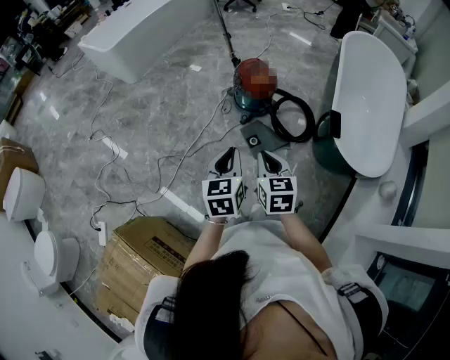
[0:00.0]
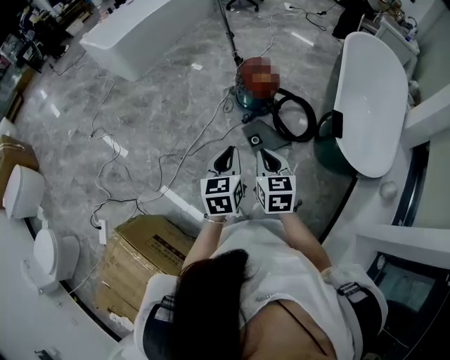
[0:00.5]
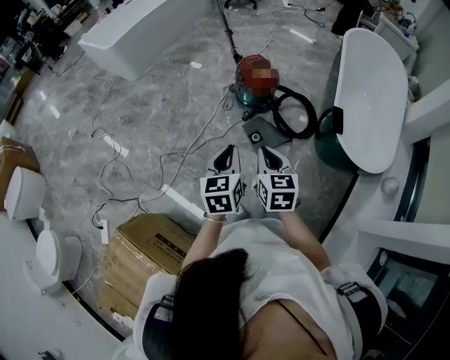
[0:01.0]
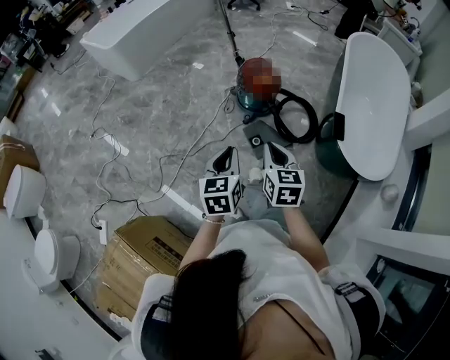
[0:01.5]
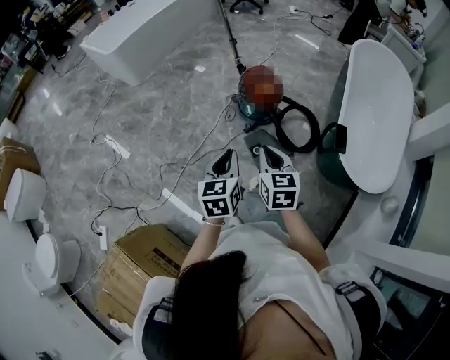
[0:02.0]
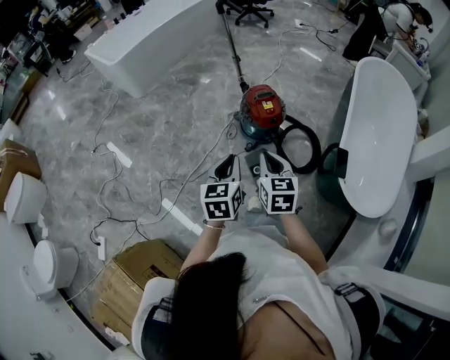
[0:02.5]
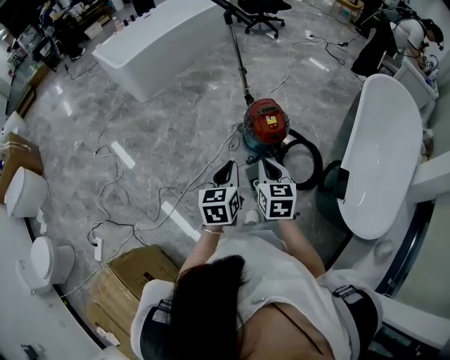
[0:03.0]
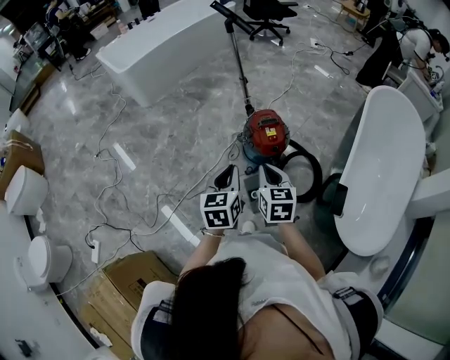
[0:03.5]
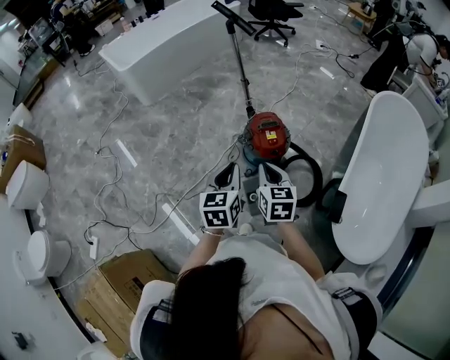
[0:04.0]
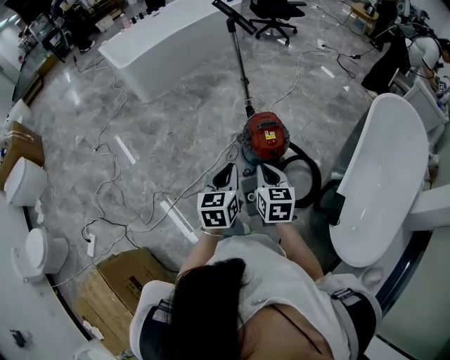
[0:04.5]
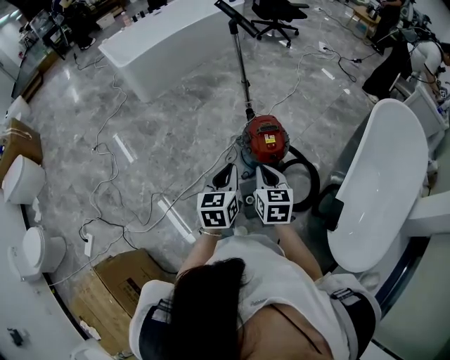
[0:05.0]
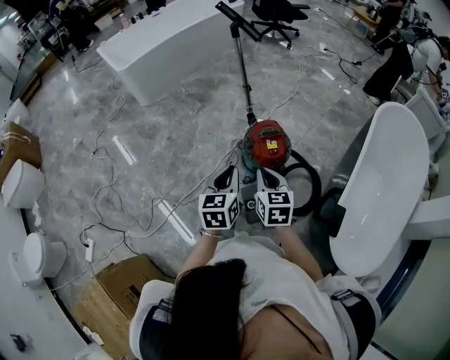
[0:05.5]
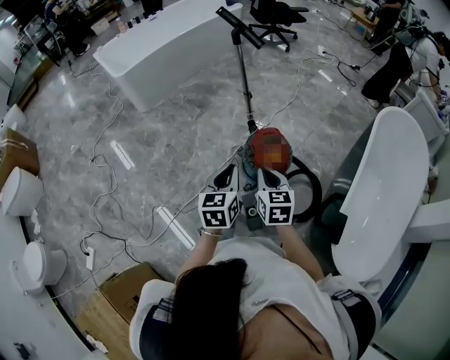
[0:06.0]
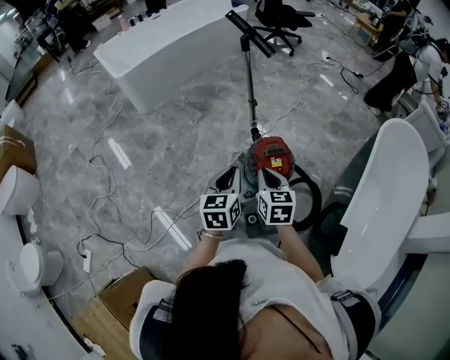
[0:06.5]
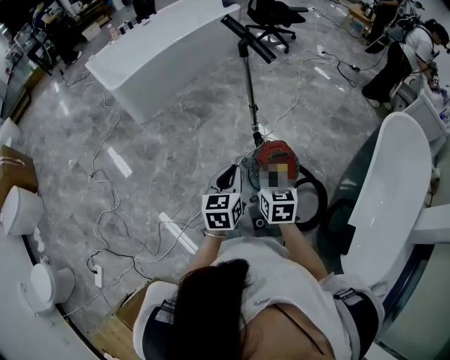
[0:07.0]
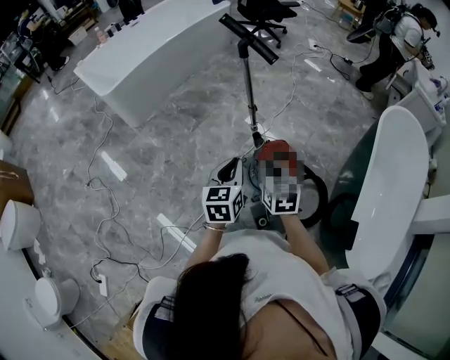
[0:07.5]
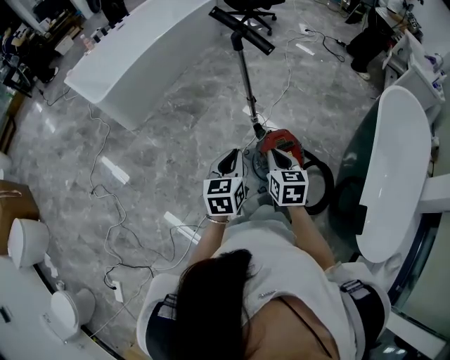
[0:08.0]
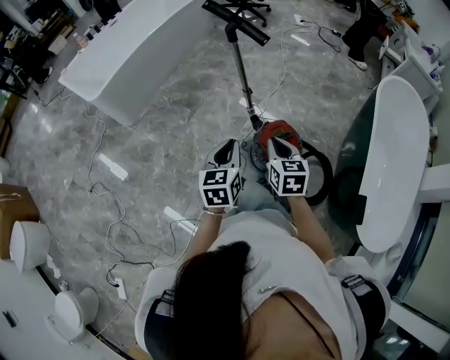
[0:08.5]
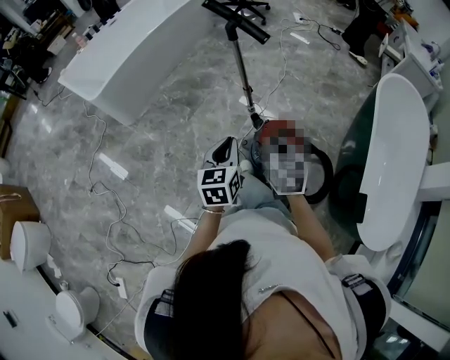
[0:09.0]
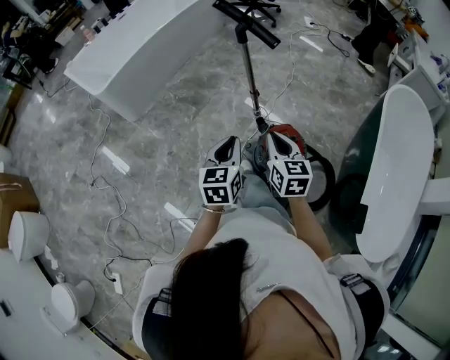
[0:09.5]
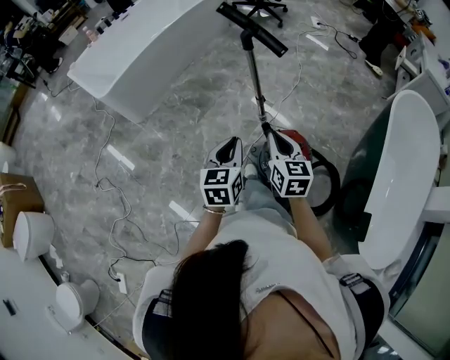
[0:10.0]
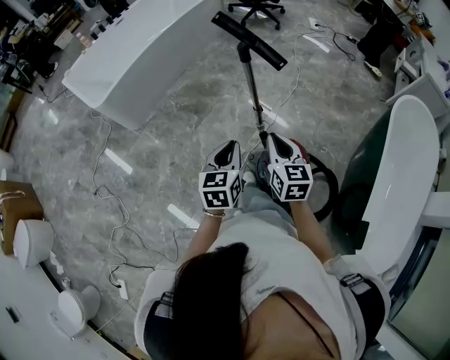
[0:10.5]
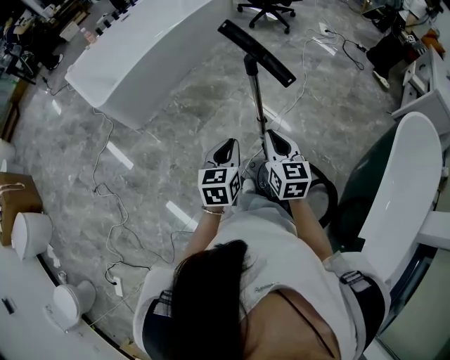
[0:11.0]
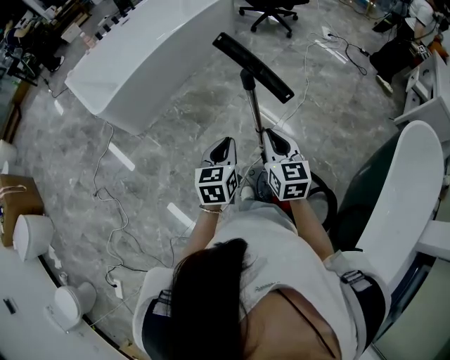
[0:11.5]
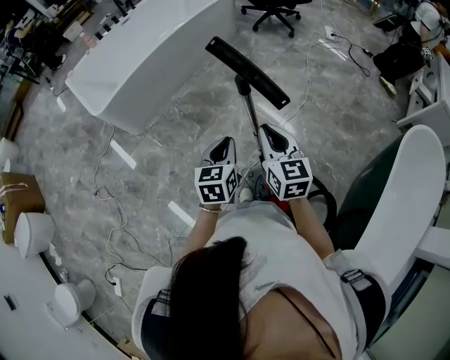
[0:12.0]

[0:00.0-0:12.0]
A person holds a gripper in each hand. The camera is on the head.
0:00.0 to 0:02.0: Both grippers move forward, about 10 cm.
0:02.0 to 0:04.0: The two grippers go roughly 20 cm forward.
0:04.0 to 0:06.0: Both grippers move forward, about 10 cm.
0:06.0 to 0:08.0: Both grippers move forward and to the left, approximately 20 cm.
0:08.0 to 0:10.0: Both grippers travel together forward, about 10 cm.
0:10.0 to 0:12.0: Both grippers move forward, roughly 20 cm.

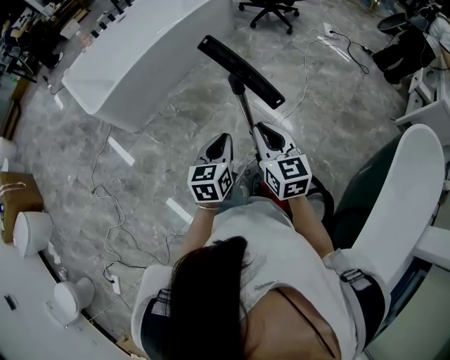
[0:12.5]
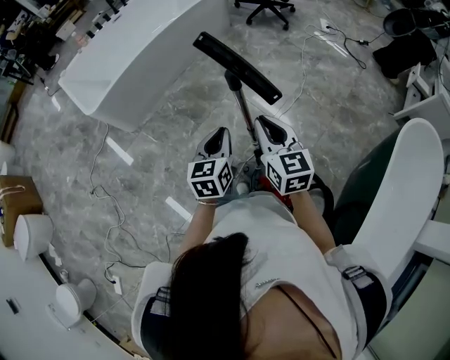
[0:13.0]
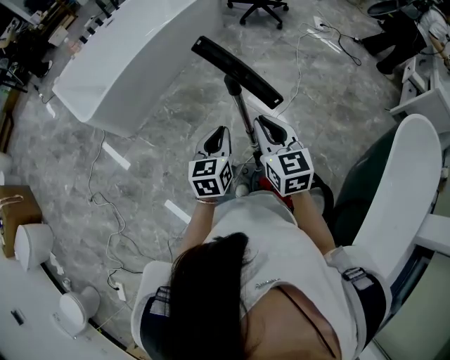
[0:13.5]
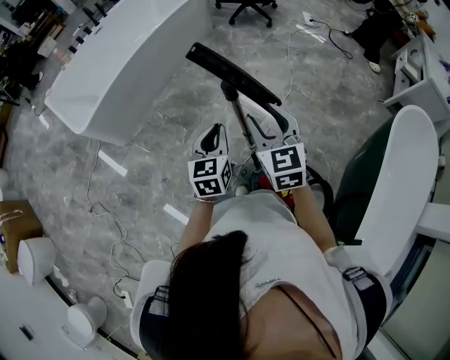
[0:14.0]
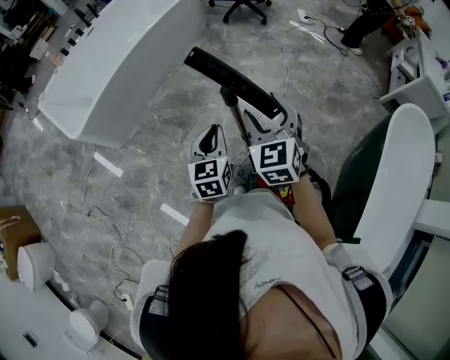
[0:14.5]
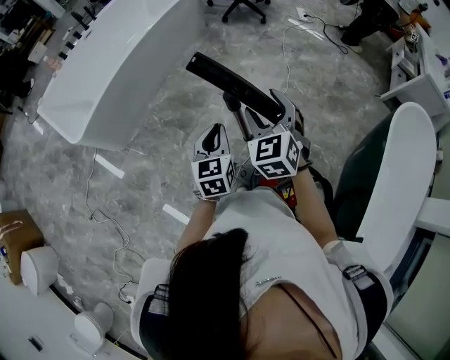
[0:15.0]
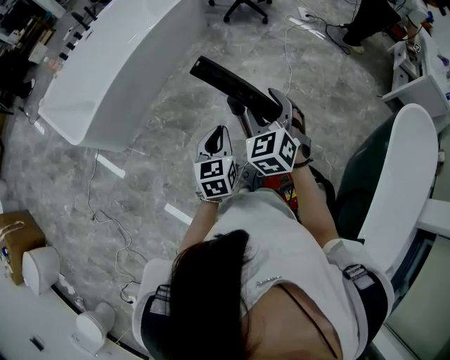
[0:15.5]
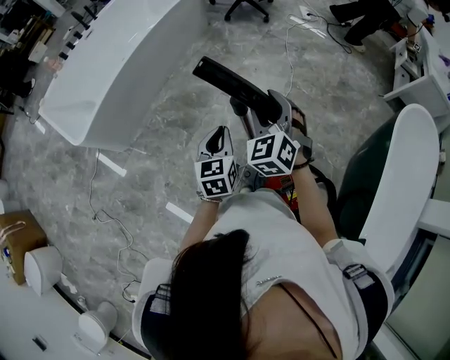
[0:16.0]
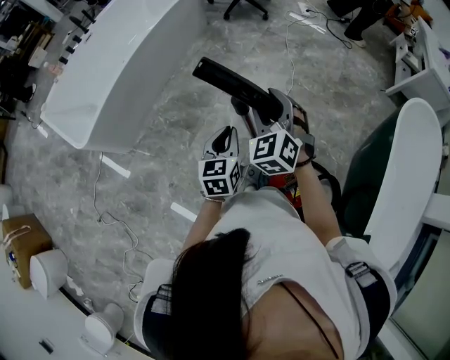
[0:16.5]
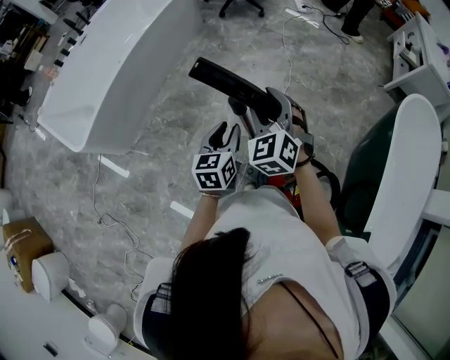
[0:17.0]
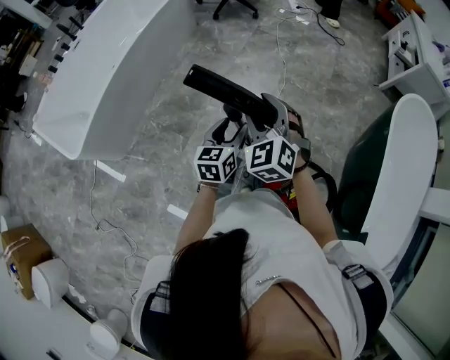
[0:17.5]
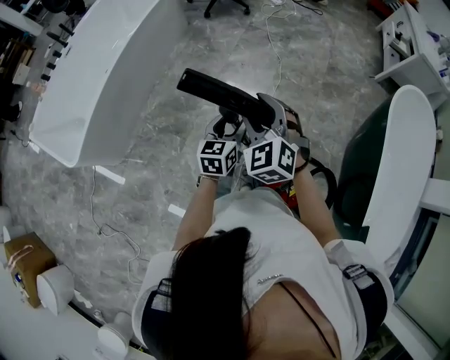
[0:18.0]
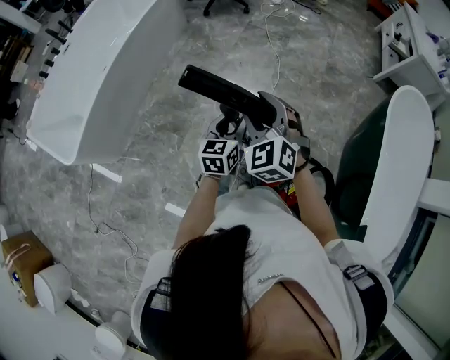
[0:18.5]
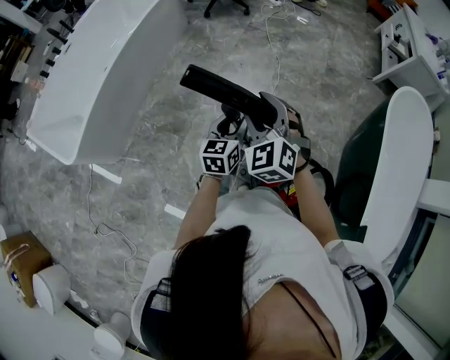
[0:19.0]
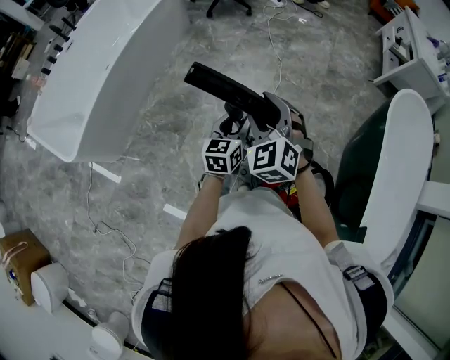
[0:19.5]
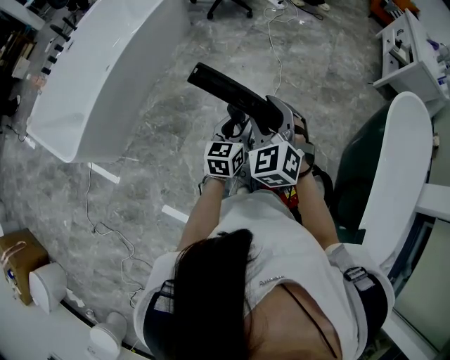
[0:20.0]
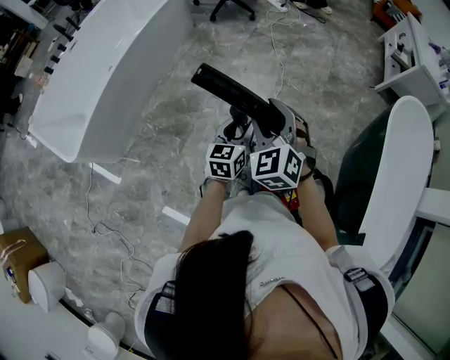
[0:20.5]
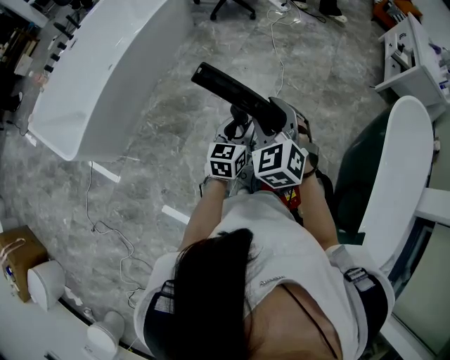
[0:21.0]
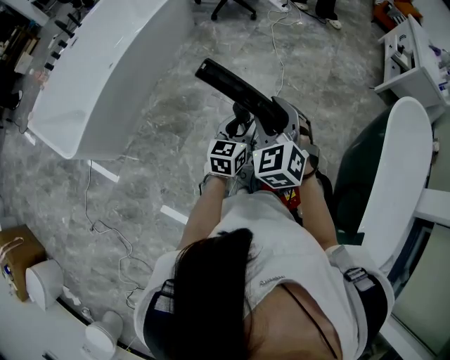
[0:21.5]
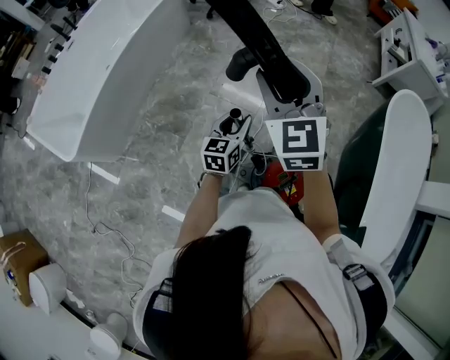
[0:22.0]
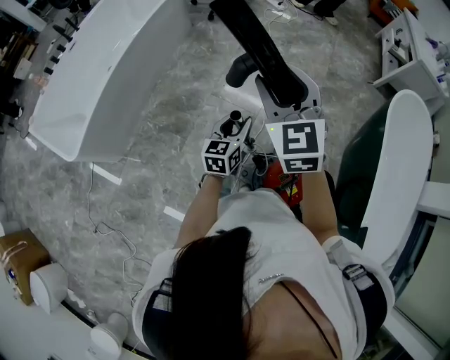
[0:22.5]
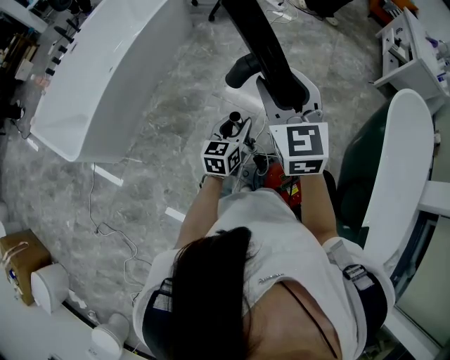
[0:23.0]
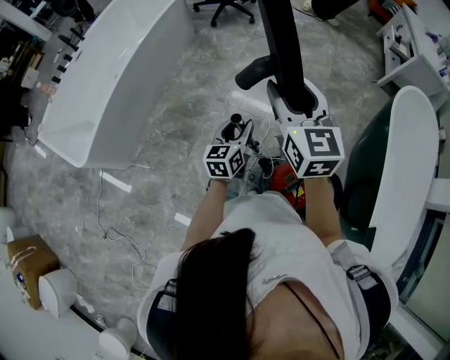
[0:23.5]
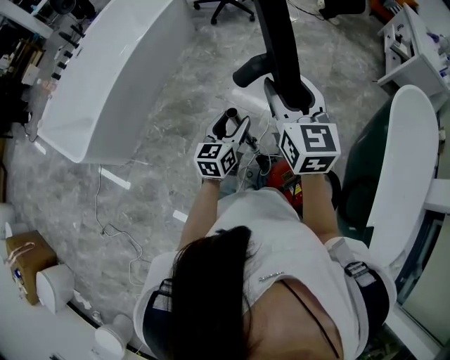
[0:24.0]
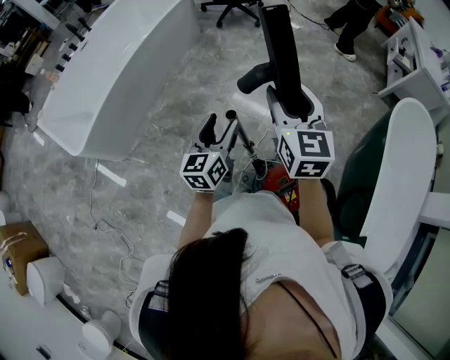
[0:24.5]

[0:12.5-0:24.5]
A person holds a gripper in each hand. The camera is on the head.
0:12.5 to 0:14.5: The two grippers go roughly 10 cm forward. The right gripper rotates some 30 degrees, and opens up.
0:14.5 to 0:16.5: The right gripper goes roughly 5 cm forward.
0:16.5 to 0:18.5: The left gripper is displaced forward and to the right by some 10 cm, and opens its fingers.
0:18.5 to 0:20.5: Neither gripper changes place.
0:20.5 to 0:22.5: The right gripper travels upward by roughly 10 cm, and swivels approximately 30 degrees.
0:22.5 to 0:24.5: The right gripper travels to the right by some 5 cm, while the left gripper heads upward, covering about 10 cm, and opens its fingers.

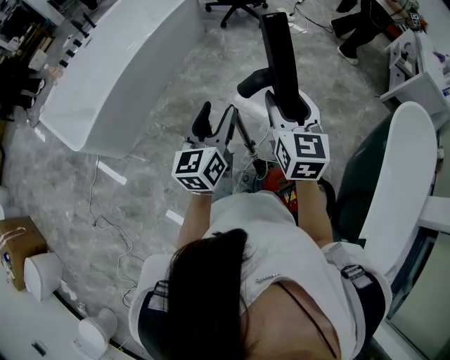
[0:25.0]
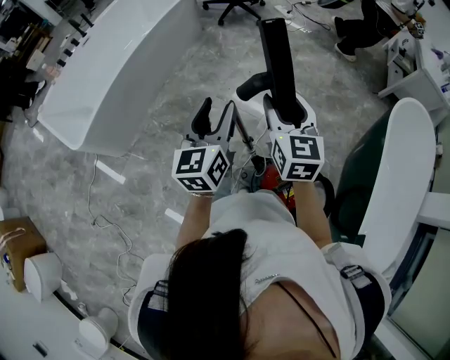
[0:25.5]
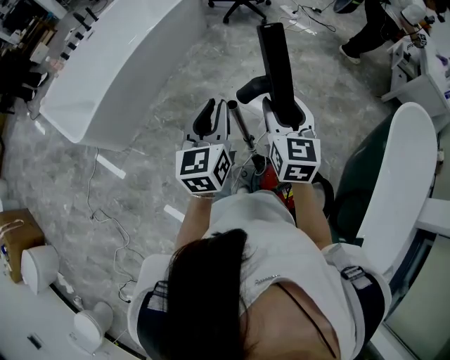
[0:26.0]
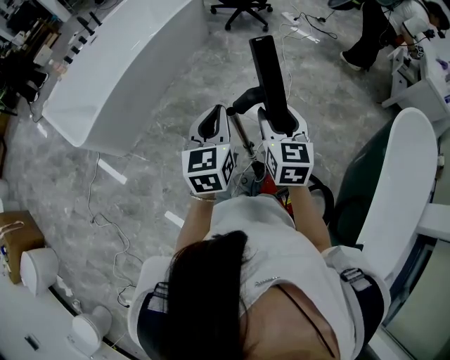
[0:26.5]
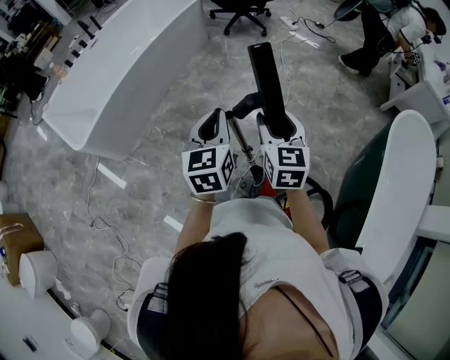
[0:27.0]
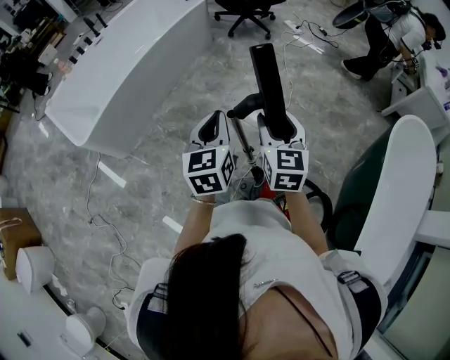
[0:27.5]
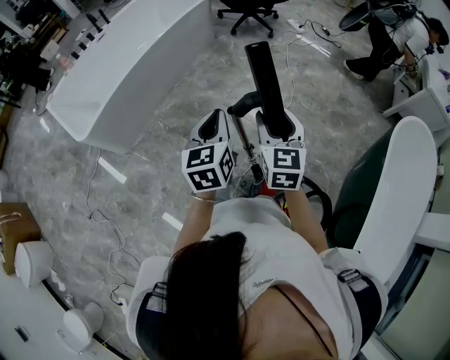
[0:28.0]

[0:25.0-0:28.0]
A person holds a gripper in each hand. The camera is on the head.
0:25.0 to 0:26.5: The right gripper travels downward by some 5 cm. Meanwhile the left gripper closes its fingers.
0:26.5 to 0:28.0: The grippers make only small movements.
